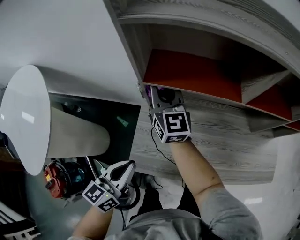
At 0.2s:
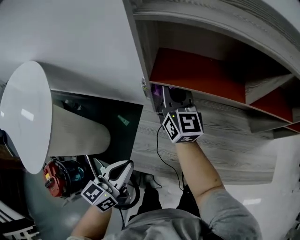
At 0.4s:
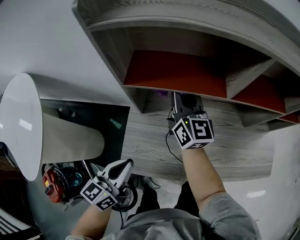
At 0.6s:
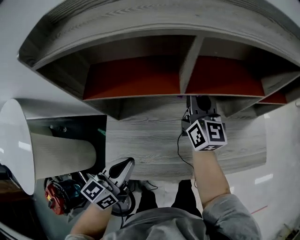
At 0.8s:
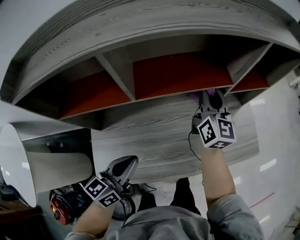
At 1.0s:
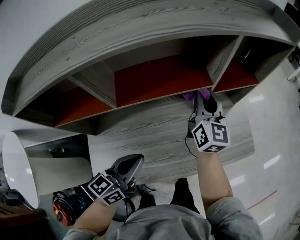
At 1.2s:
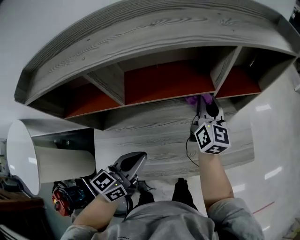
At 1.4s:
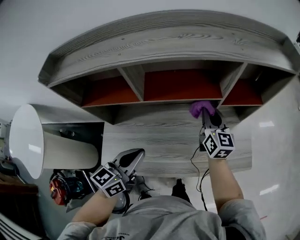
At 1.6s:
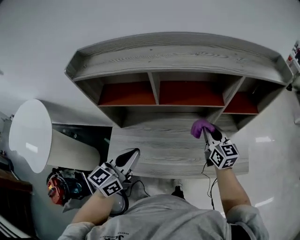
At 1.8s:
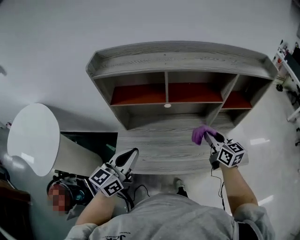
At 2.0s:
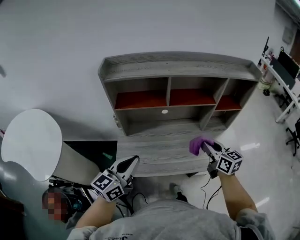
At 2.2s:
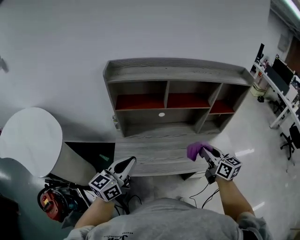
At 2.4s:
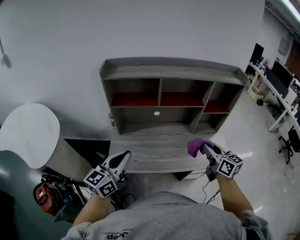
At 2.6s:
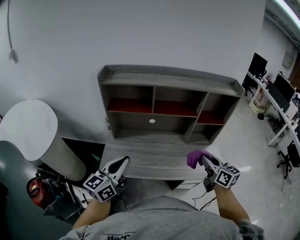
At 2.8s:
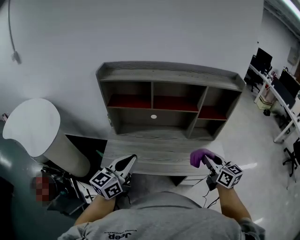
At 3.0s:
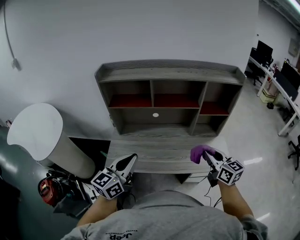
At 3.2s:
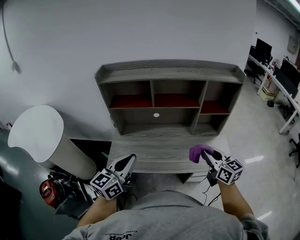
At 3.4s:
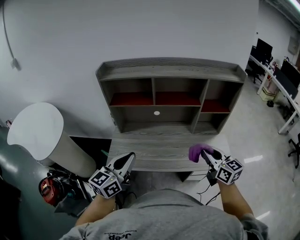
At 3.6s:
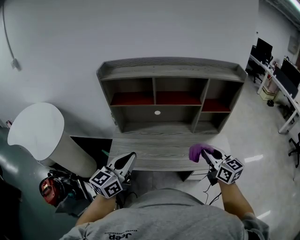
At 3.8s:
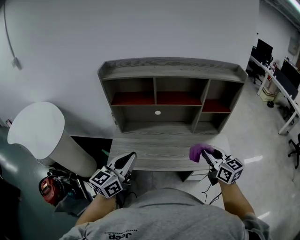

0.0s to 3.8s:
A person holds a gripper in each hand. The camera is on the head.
0.0s to 1.2s: The right gripper ends up roughly 60 cm from where it was, and swivels about 40 degrees. The left gripper changes place by about 35 cm, and changes its angle by approximately 20 degrees.
1.2s to 2.6s: The right gripper shifts some 35 cm backward, and rotates approximately 30 degrees. The left gripper goes roughly 30 cm backward, upward and to the left, and swivels approximately 20 degrees.
2.6s to 3.8s: The grippers stay close to where they were, moving slightly.

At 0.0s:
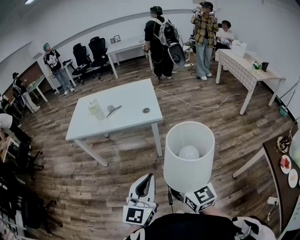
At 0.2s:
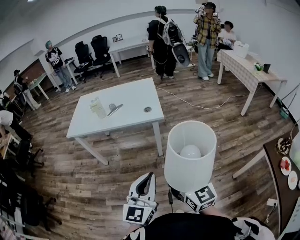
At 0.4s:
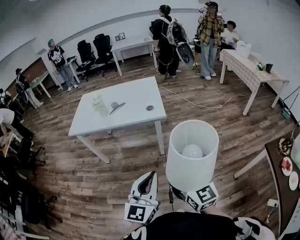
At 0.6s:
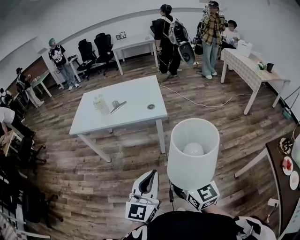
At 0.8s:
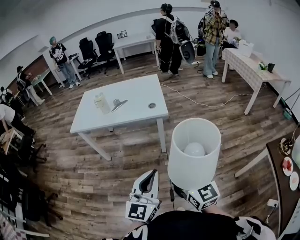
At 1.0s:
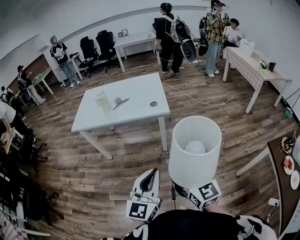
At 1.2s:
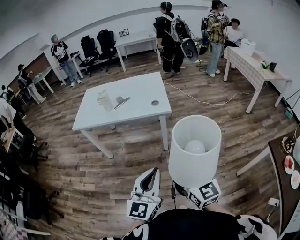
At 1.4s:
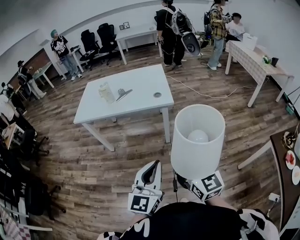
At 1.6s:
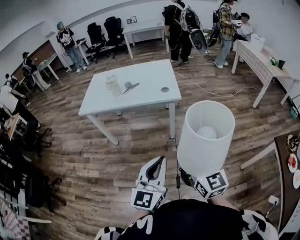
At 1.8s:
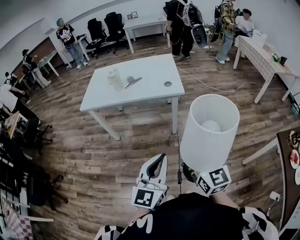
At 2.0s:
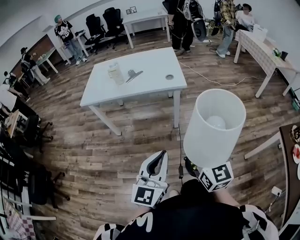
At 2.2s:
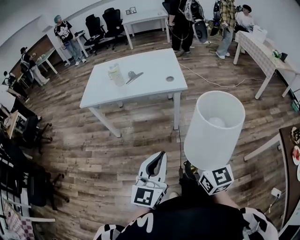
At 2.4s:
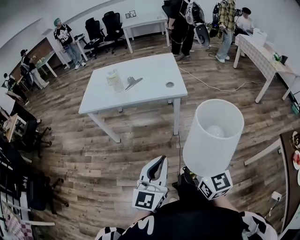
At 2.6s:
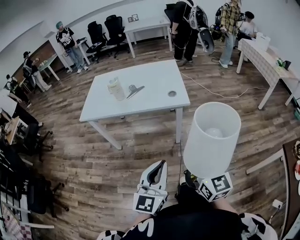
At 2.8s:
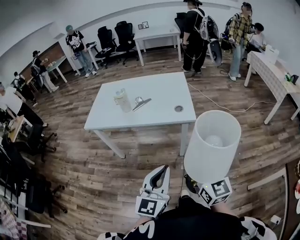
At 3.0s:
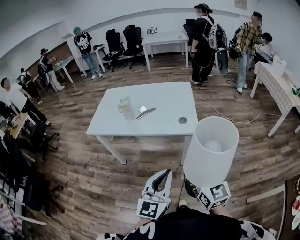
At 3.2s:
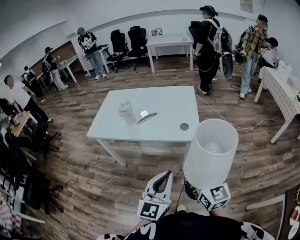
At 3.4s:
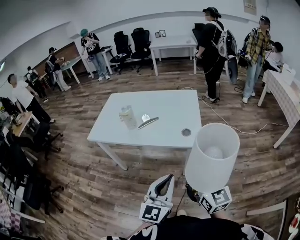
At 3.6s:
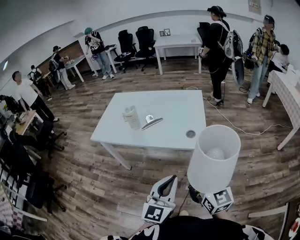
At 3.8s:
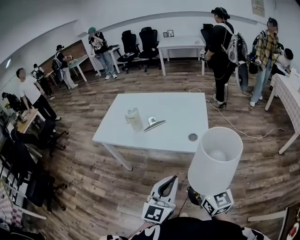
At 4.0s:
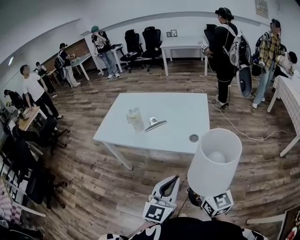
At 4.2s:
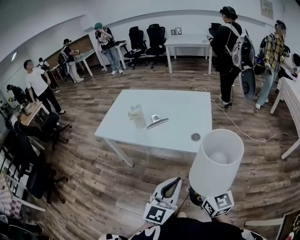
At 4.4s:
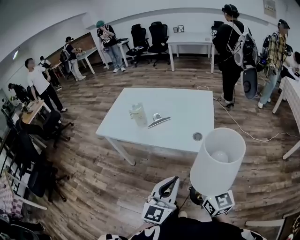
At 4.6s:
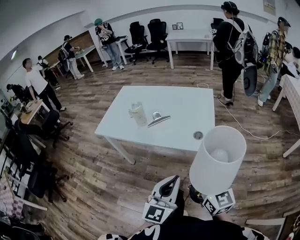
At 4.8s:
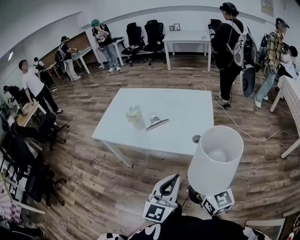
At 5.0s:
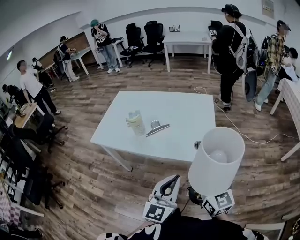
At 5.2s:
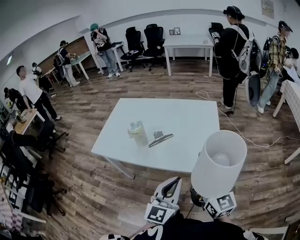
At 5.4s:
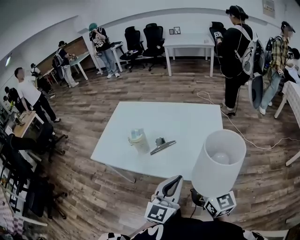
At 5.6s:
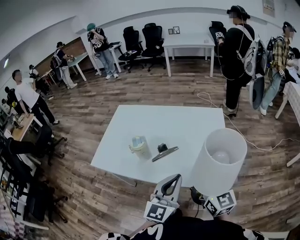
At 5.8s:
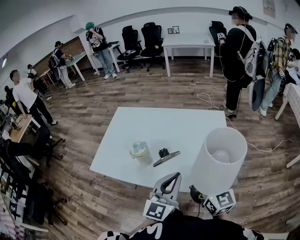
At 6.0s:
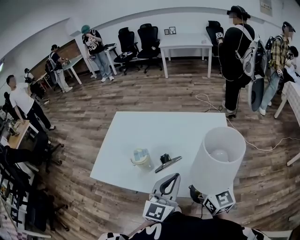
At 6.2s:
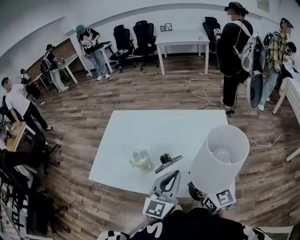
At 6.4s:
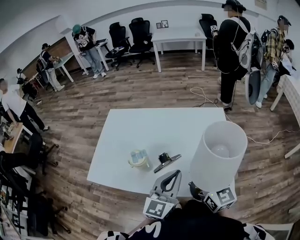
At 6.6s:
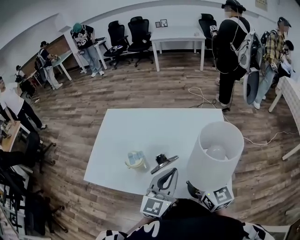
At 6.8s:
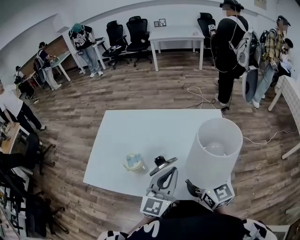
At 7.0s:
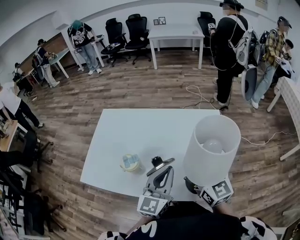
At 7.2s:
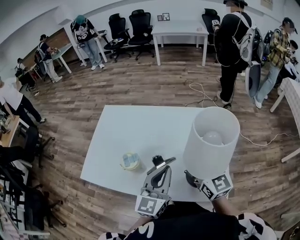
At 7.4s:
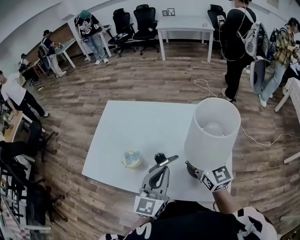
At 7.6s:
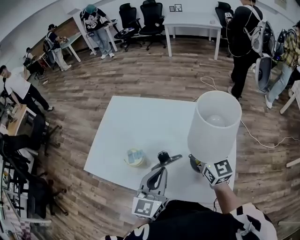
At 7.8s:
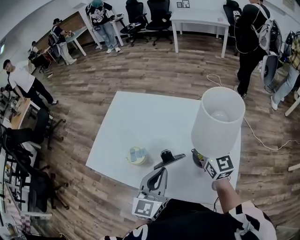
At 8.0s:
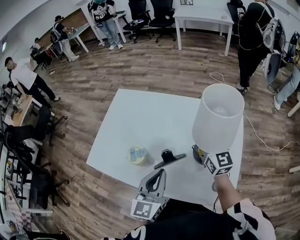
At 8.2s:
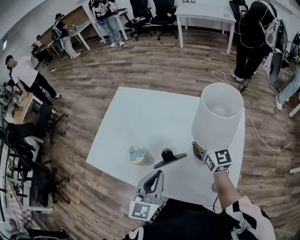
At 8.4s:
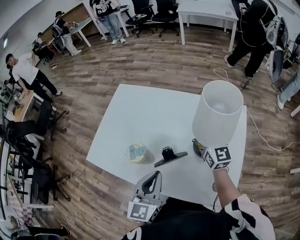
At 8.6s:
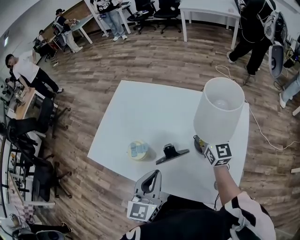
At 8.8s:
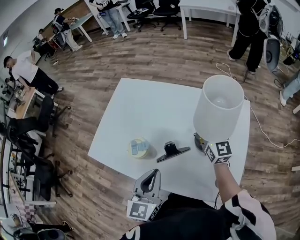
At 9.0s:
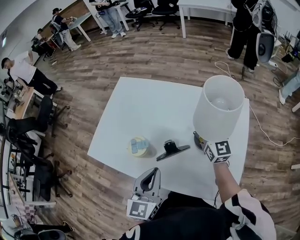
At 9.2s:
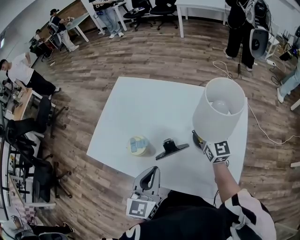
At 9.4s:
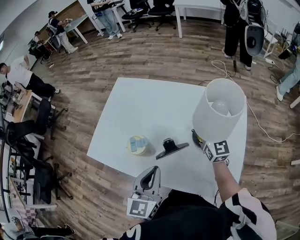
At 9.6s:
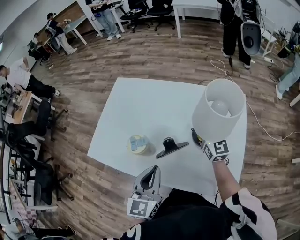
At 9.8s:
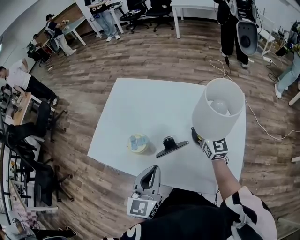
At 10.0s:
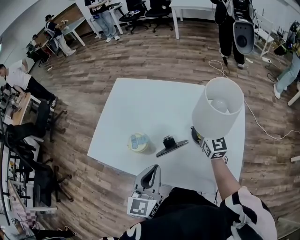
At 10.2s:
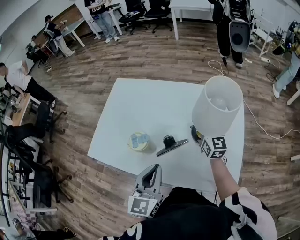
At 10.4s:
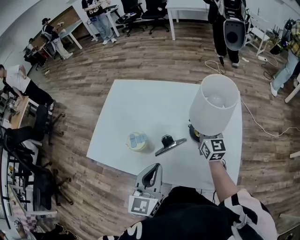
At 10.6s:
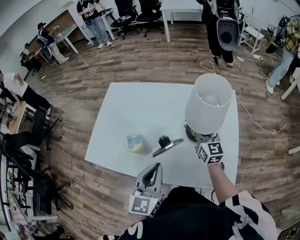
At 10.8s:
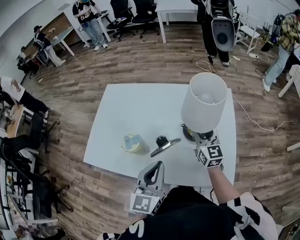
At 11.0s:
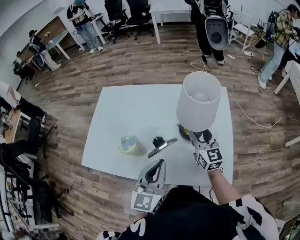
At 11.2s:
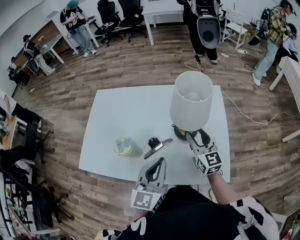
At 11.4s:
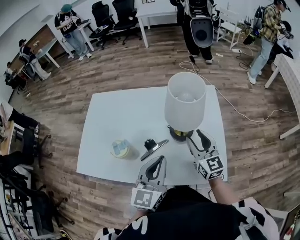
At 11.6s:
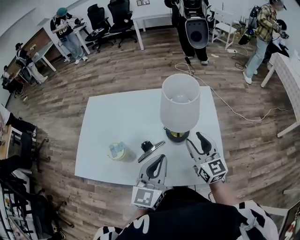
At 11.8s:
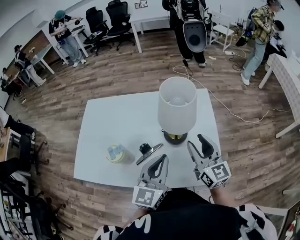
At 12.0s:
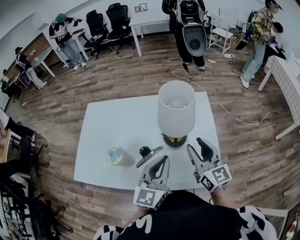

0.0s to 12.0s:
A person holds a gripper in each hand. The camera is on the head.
0.0s to 1.6s: The grippers make only small movements.
1.6s to 3.0s: Both grippers move forward, approximately 20 cm.
3.0s to 4.4s: Both grippers travel together forward, approximately 10 cm.
4.4s to 6.0s: The grippers both shift forward by approximately 30 cm.
6.0s to 7.6s: The left gripper is displaced forward by approximately 5 cm. The right gripper travels forward by roughly 15 cm.
7.6s to 9.0s: The right gripper travels forward and downward by about 10 cm. The left gripper heads to the left, covering some 5 cm.
9.0s to 10.4s: The right gripper shifts by some 5 cm, and opens its fingers.
10.4s to 12.0s: The right gripper heads backward, upward and to the right, covering roughly 20 cm. The left gripper travels to the right by about 10 cm, and swivels approximately 20 degrees.

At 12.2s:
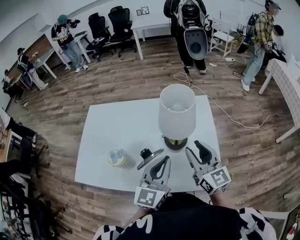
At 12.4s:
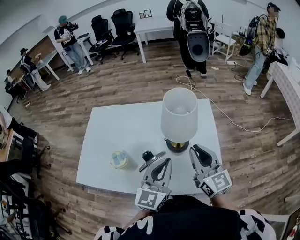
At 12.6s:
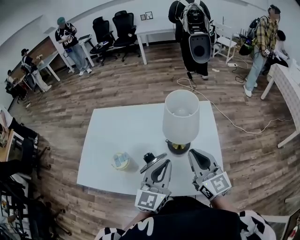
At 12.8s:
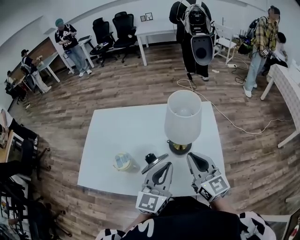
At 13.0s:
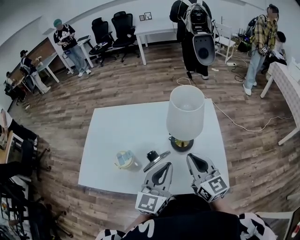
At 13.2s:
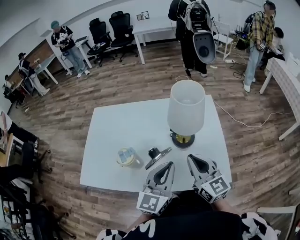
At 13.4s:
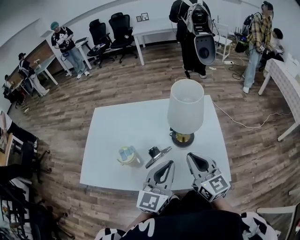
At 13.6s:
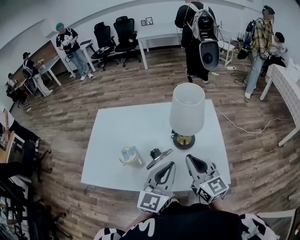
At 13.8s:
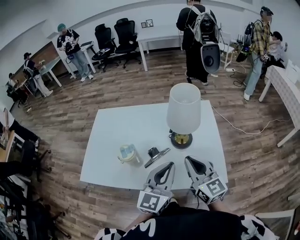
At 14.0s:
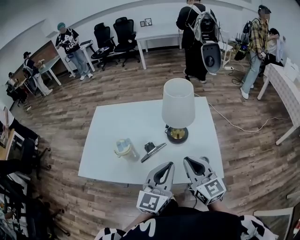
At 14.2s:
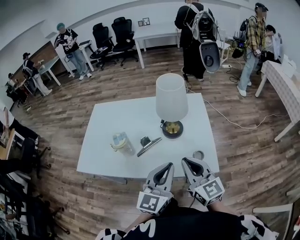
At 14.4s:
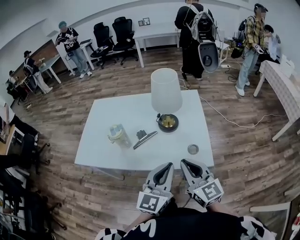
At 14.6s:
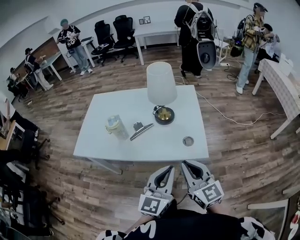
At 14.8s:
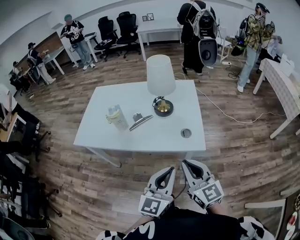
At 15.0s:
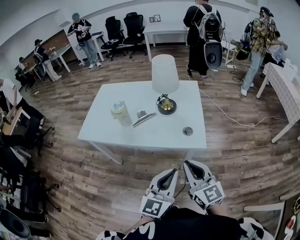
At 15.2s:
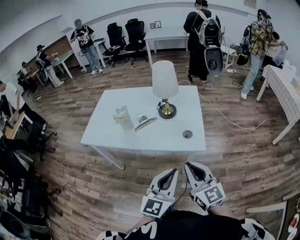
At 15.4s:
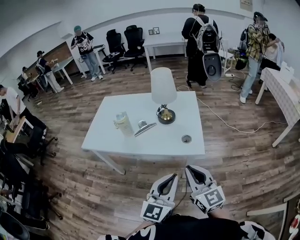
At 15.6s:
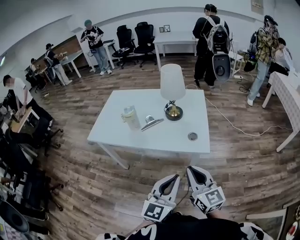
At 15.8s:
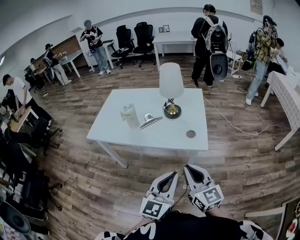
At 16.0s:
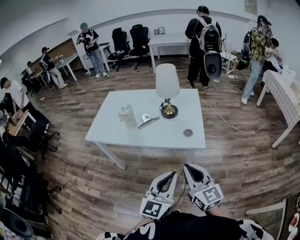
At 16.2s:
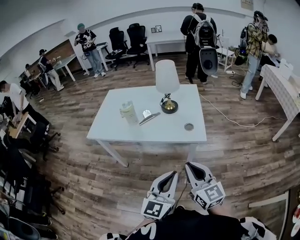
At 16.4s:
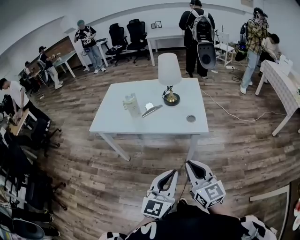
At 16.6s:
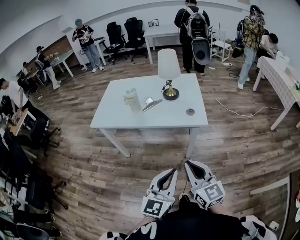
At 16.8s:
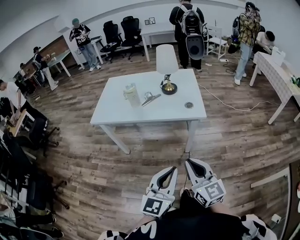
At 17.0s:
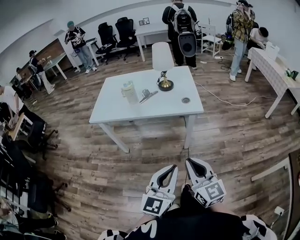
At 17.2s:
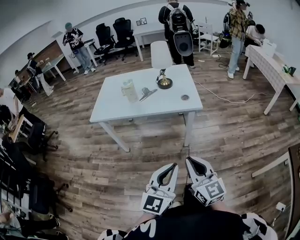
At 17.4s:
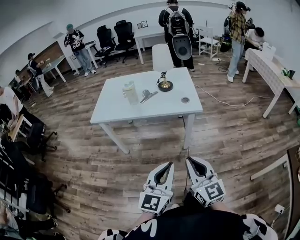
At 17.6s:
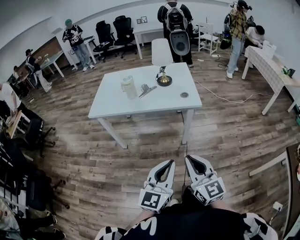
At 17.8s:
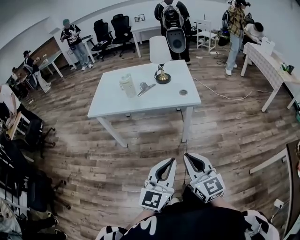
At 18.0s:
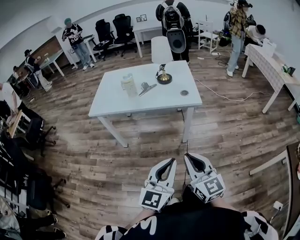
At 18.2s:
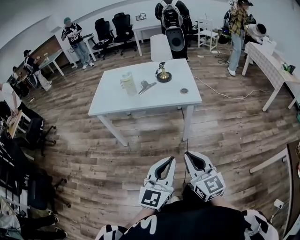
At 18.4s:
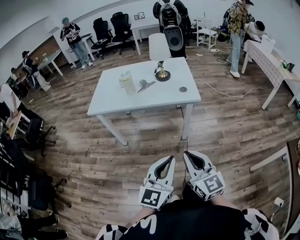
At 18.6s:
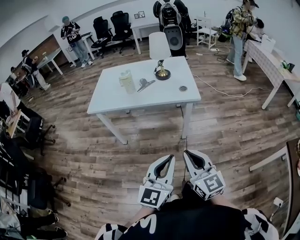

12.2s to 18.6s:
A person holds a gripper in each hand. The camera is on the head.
12.2s to 13.8s: The left gripper shifts about 5 cm backward; the right gripper is displaced backward and to the left by about 10 cm, and closes.
13.8s to 15.4s: The left gripper moves backward and to the right, roughly 30 cm. The right gripper goes approximately 25 cm backward.
15.4s to 17.0s: The two grippers go some 20 cm backward.
17.0s to 18.6s: There are only small adjustments of the grippers.

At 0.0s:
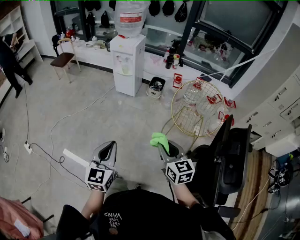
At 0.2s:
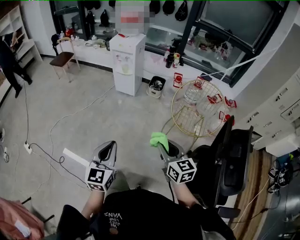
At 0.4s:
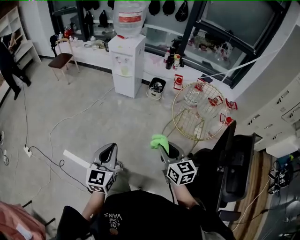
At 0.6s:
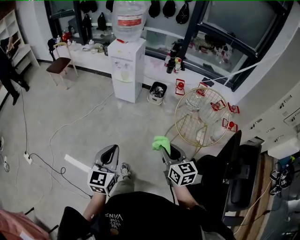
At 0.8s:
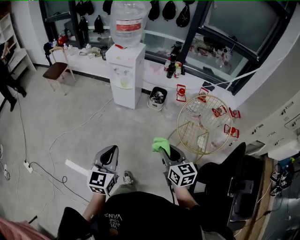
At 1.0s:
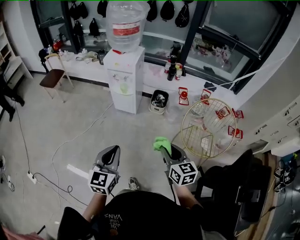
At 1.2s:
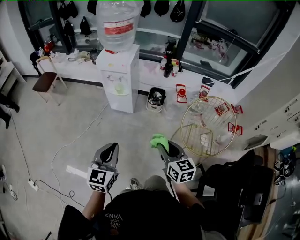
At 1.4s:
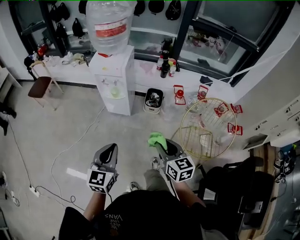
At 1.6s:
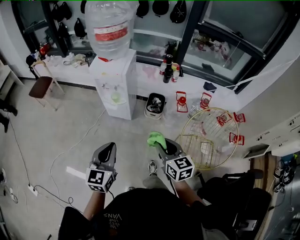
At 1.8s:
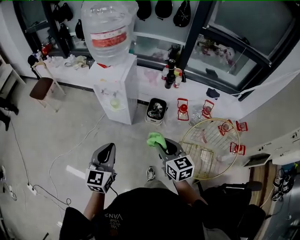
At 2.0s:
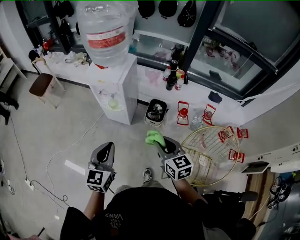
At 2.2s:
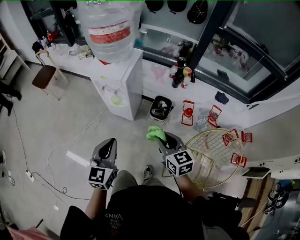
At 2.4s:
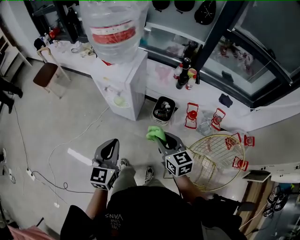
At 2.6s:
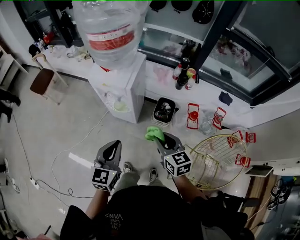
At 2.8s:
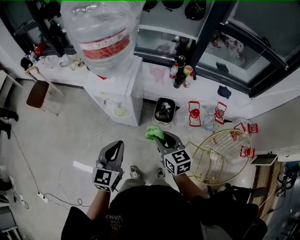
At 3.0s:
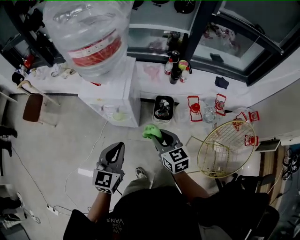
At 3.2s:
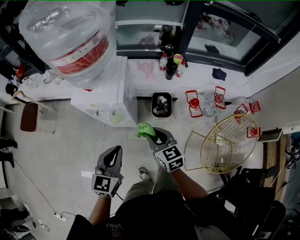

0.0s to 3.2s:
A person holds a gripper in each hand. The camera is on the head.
0.0s to 1.6s: Both grippers are carried forward, approximately 40 cm.
1.6s to 3.2s: The grippers both shift forward by some 30 cm.
